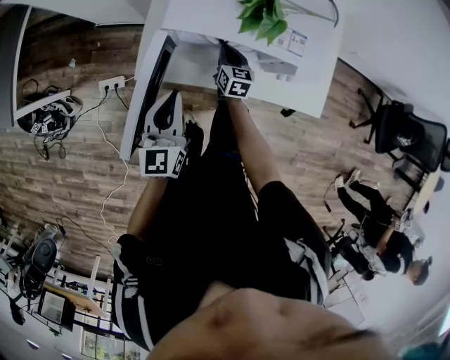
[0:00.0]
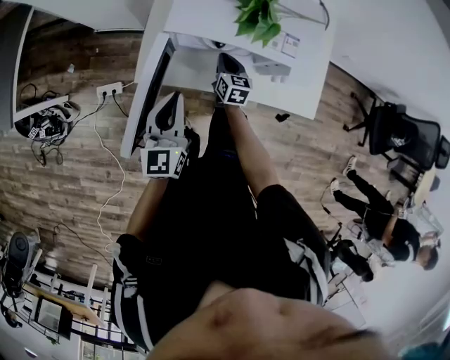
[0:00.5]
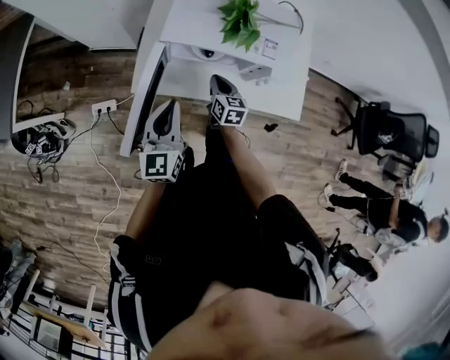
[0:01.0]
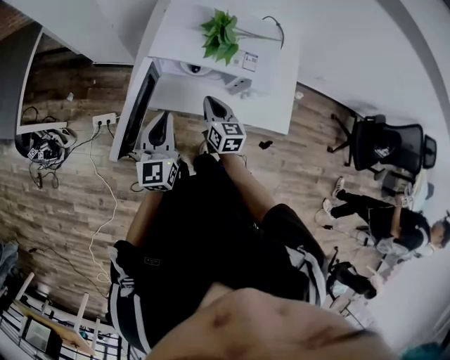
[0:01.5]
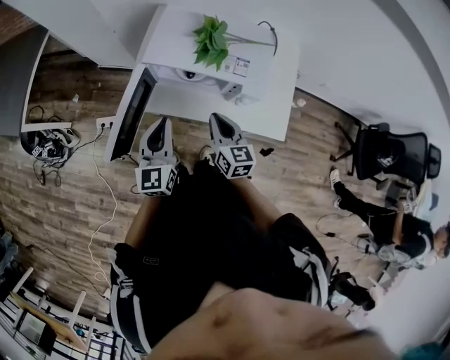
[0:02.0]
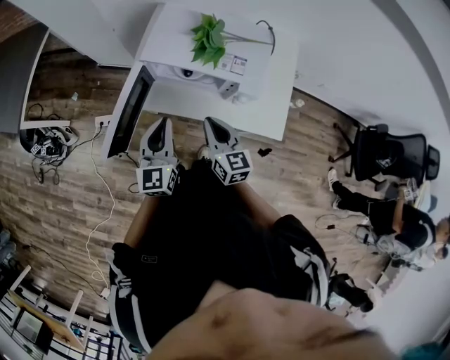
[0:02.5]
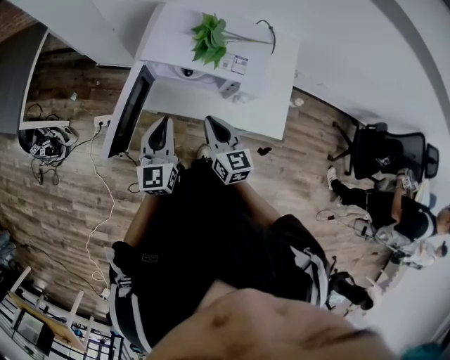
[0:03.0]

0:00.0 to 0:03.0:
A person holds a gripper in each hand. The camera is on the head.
0:00.0 to 0:01.5: The right gripper is displaced upward and backward by some 20 cm. The left gripper travels upward by about 5 cm.
0:01.5 to 0:03.0: The right gripper moves upward and backward, roughly 10 cm.

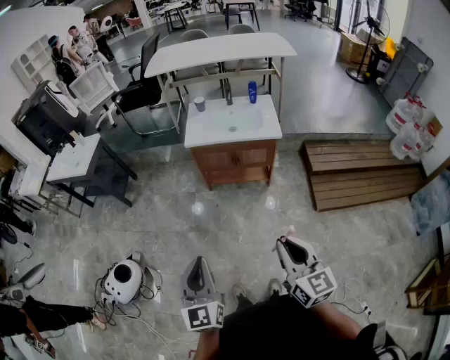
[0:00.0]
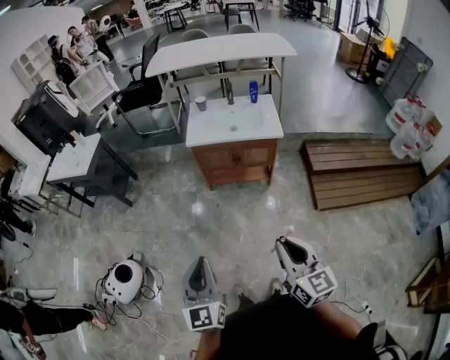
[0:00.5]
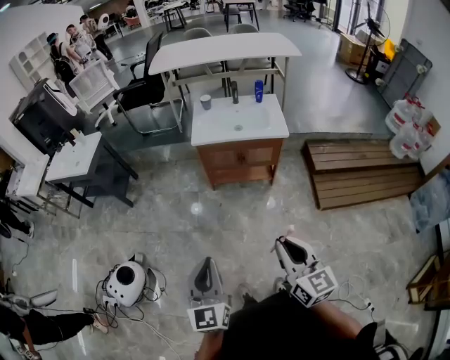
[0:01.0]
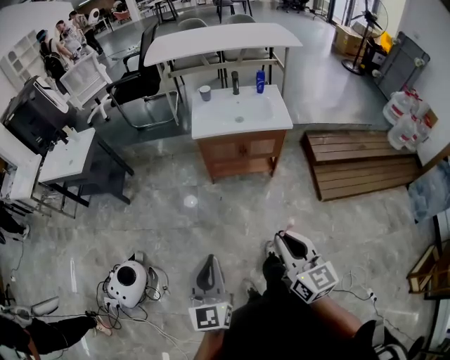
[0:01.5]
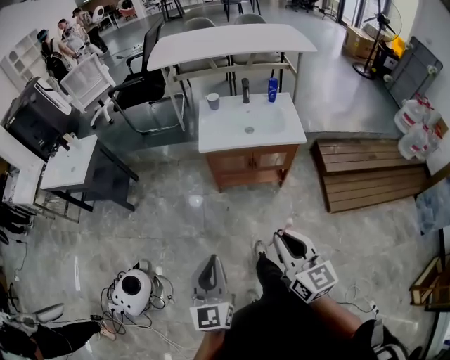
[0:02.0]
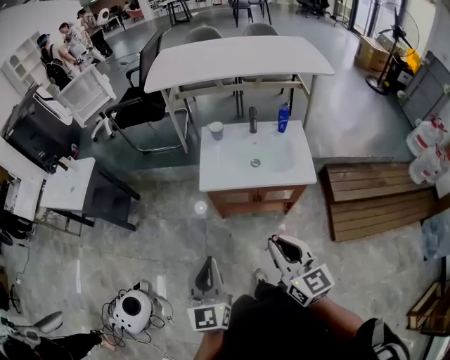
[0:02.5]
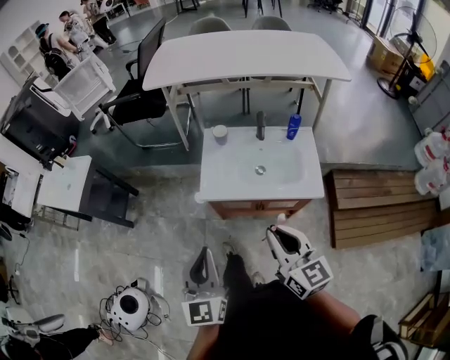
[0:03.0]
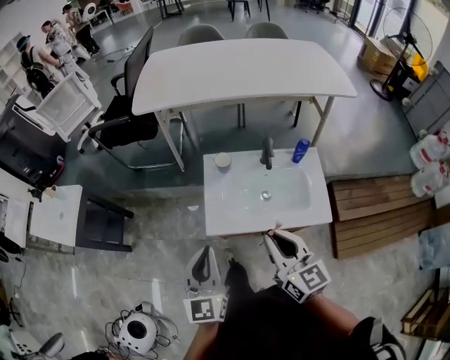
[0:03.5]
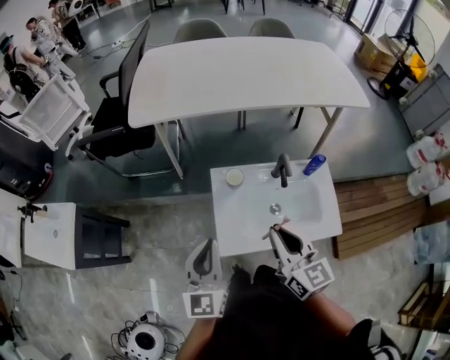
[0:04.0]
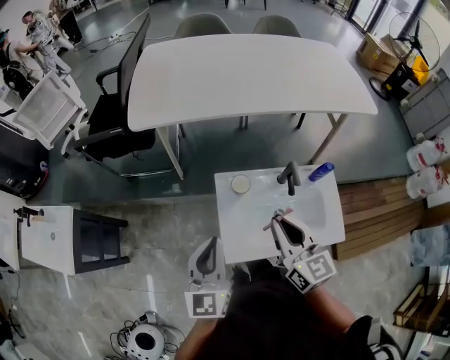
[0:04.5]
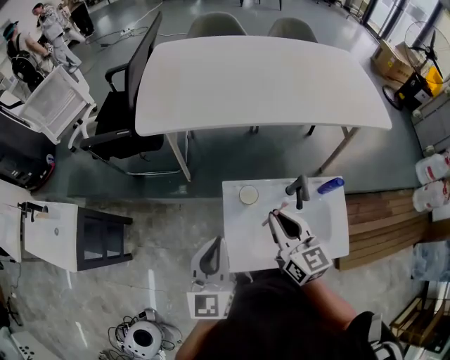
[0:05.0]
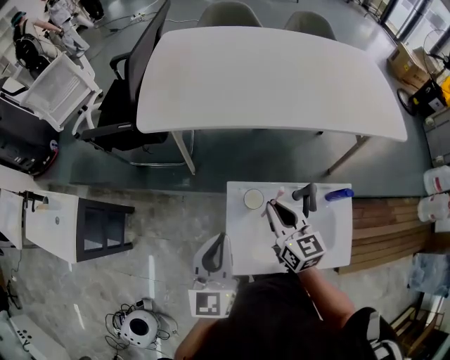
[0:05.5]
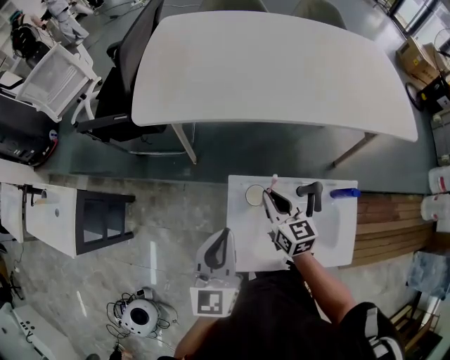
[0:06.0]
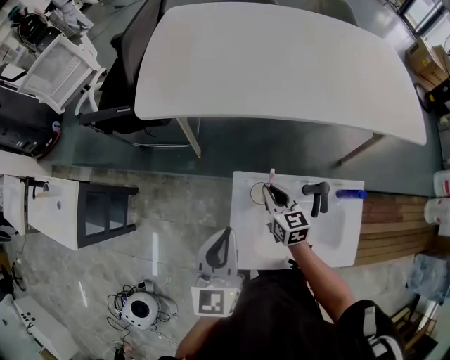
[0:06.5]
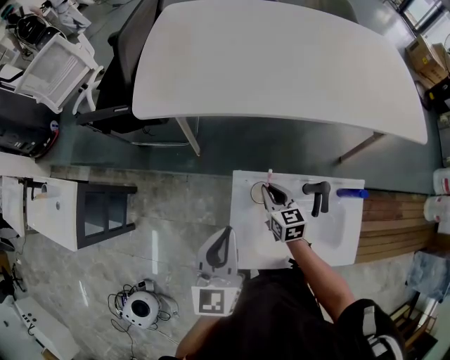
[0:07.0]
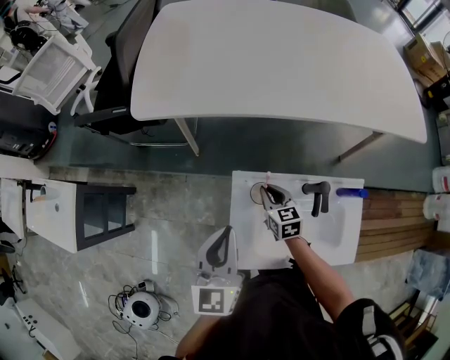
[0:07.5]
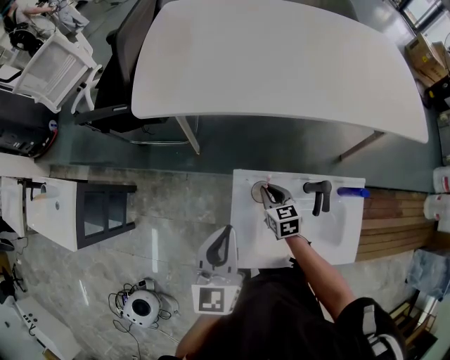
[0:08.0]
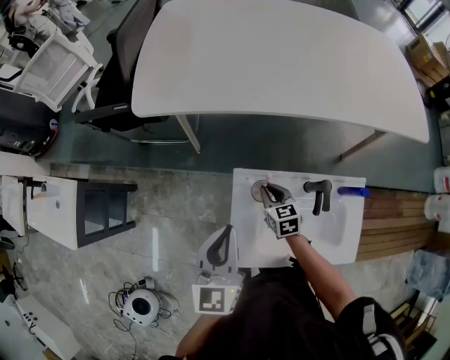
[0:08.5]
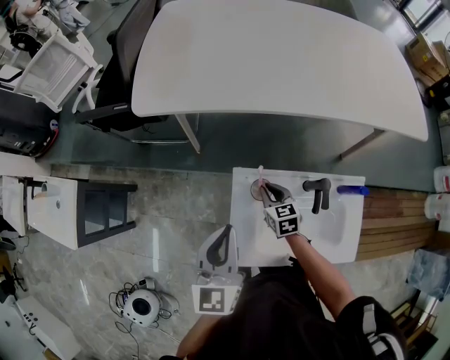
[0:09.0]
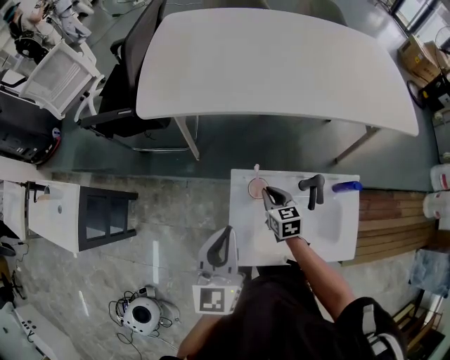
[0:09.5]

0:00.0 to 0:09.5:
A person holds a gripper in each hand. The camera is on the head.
0:00.0 to 0:02.0: Both grippers travel together forward and to the left, some 20 cm.
0:02.0 to 0:04.0: Both grippers are carried forward, approximately 60 cm.
0:04.0 to 0:05.5: The left gripper is displaced forward by about 15 cm. The right gripper moves forward, approximately 20 cm.
0:05.5 to 0:07.5: The left gripper ends up about 5 cm from where it was, while the right gripper is displaced downward by about 20 cm, and changes its angle by roughly 20 degrees.
0:07.5 to 0:09.5: The grippers move only a little.

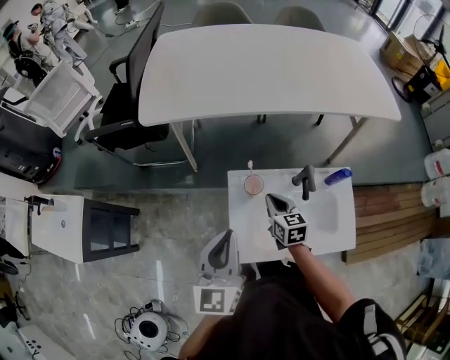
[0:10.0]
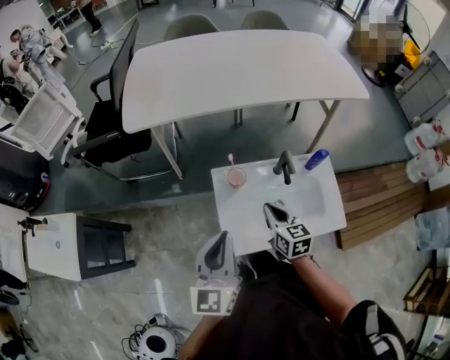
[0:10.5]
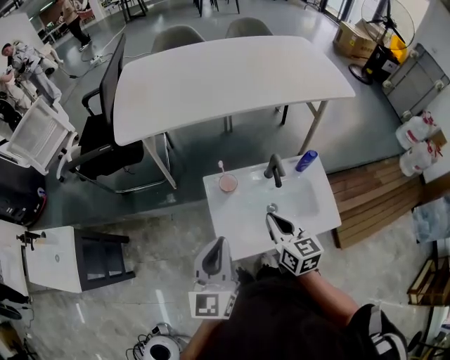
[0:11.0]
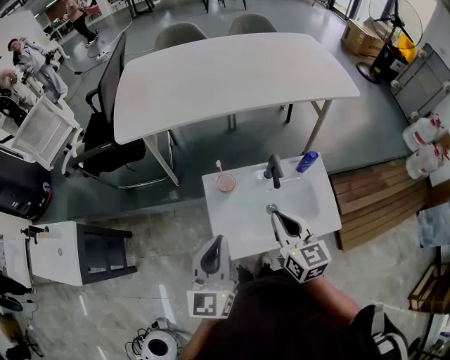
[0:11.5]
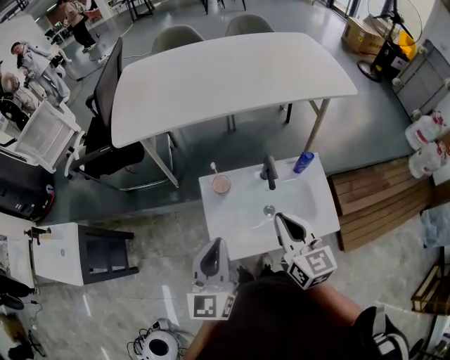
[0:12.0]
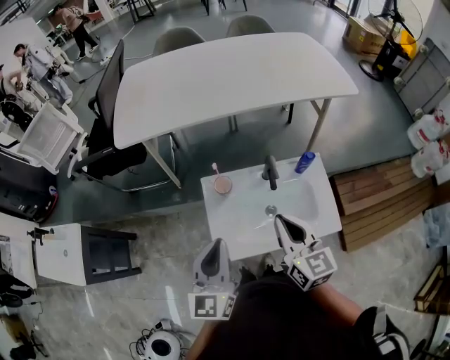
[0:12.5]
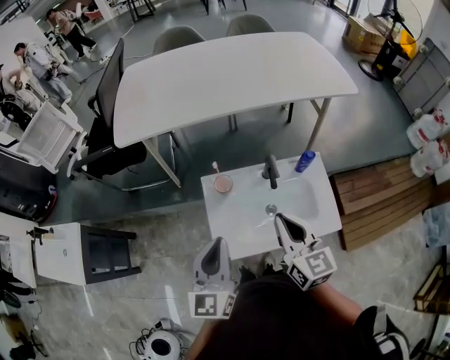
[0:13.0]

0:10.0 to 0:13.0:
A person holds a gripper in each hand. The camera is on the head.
0:10.0 to 0:11.5: The left gripper heads backward, covering about 5 cm. The right gripper is displaced upward, backward and to the right by roughly 25 cm.
0:11.5 to 0:13.0: The grippers move only a little.

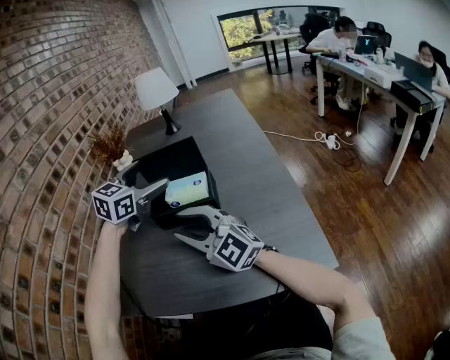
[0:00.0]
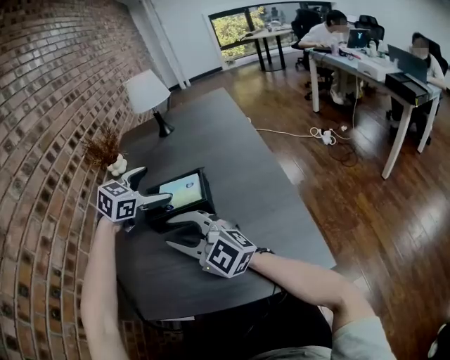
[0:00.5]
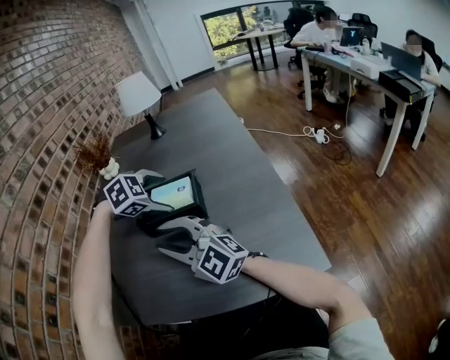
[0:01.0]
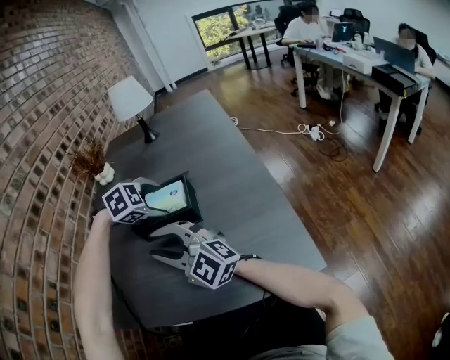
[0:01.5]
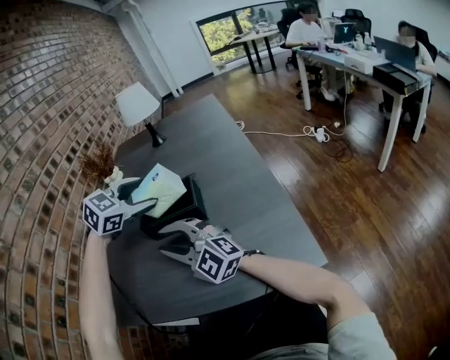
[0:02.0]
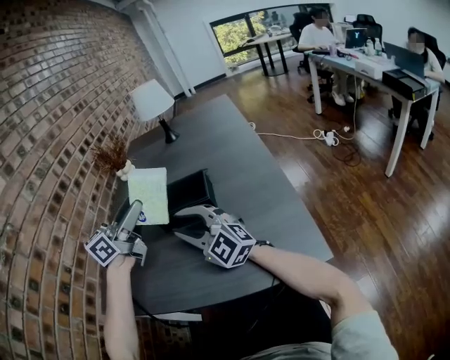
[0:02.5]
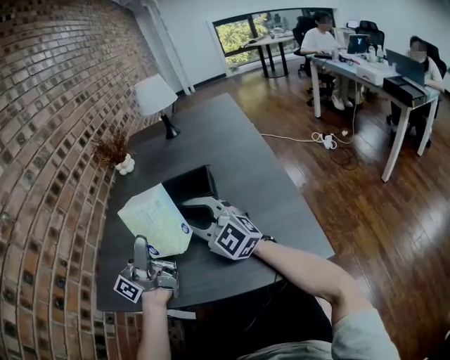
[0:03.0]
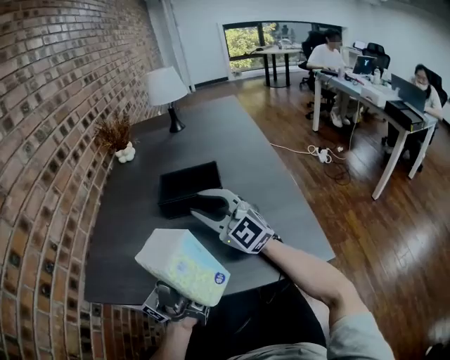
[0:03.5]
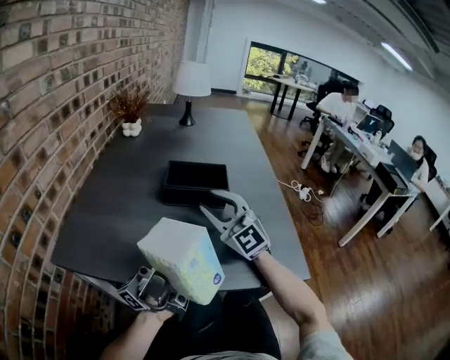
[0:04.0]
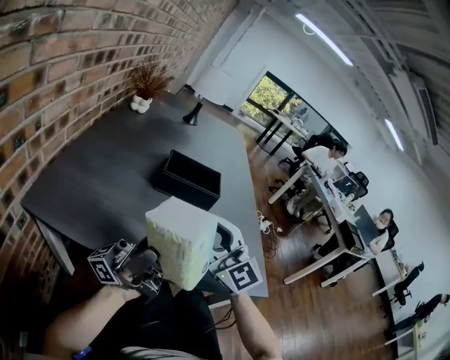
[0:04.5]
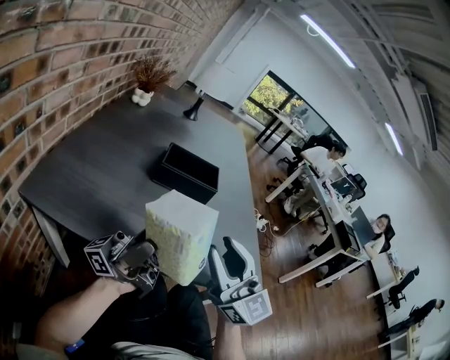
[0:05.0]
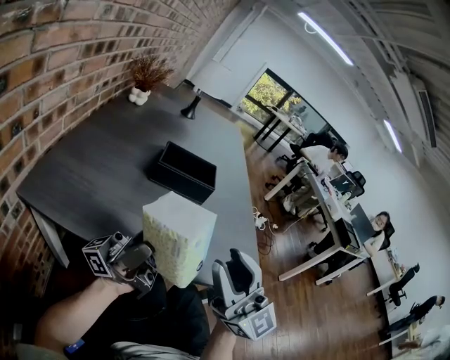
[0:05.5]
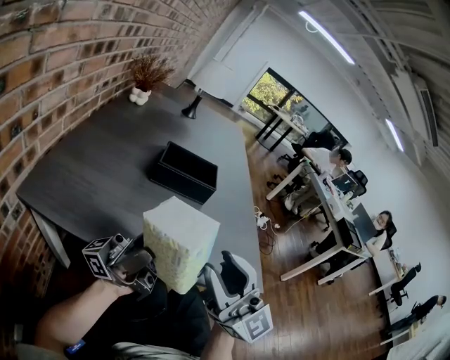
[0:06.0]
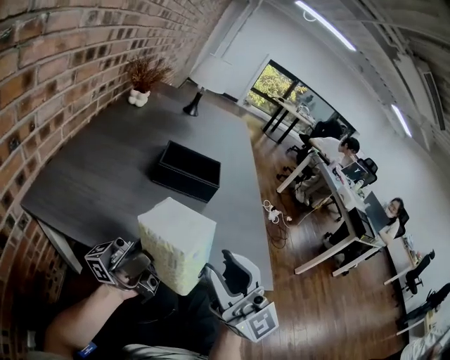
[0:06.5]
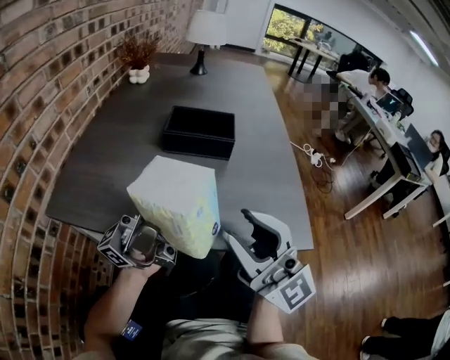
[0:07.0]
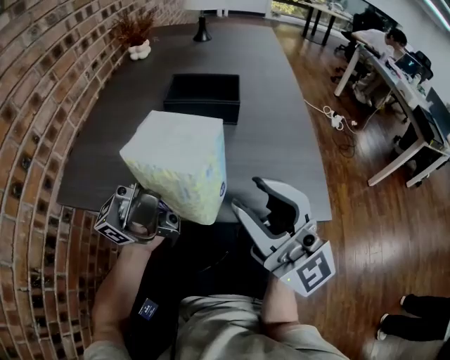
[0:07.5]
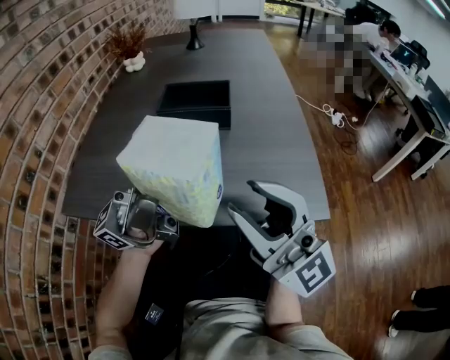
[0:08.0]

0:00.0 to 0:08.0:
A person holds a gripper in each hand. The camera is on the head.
0:00.0 to 0:02.0: The left gripper goes downward and returns, roughly 10 cm each way, and turns by roughly 20 degrees.
0:02.0 to 0:04.0: The right gripper moves some 5 cm; the left gripper is displaced backward by some 30 cm, and angles its fingers upward, by about 100 degrees.
0:04.0 to 0:06.0: The right gripper moves backward, about 20 cm, and rotates approximately 20 degrees.
0:06.0 to 0:08.0: The left gripper changes place by some 5 cm, and turns by about 30 degrees, while the right gripper goes roughly 5 cm to the right.

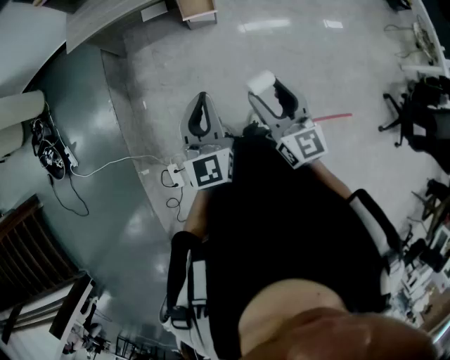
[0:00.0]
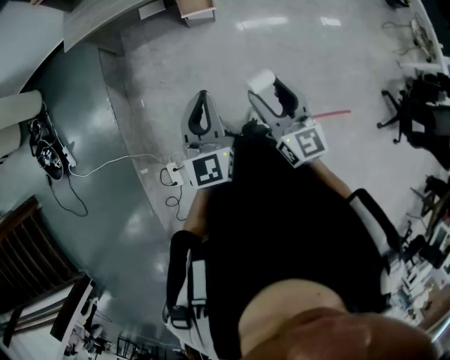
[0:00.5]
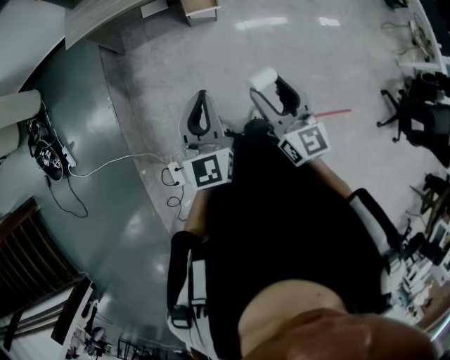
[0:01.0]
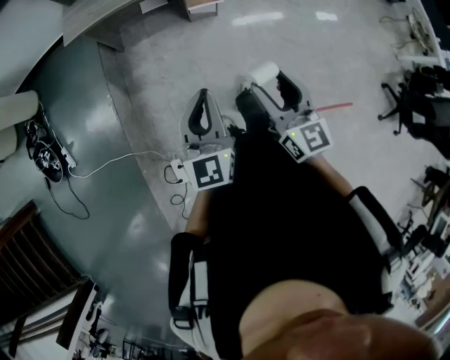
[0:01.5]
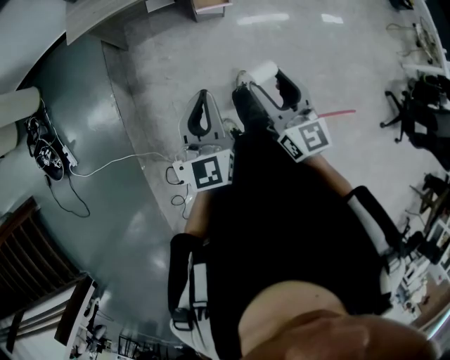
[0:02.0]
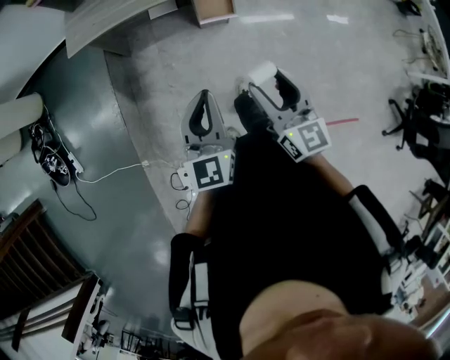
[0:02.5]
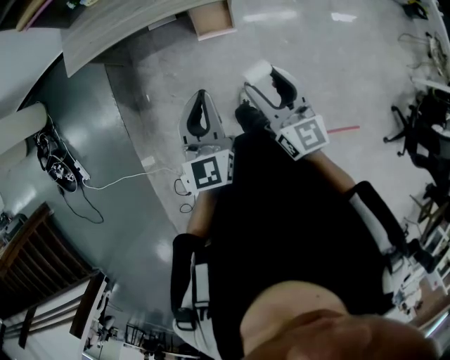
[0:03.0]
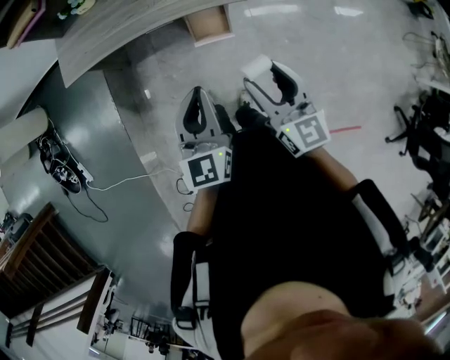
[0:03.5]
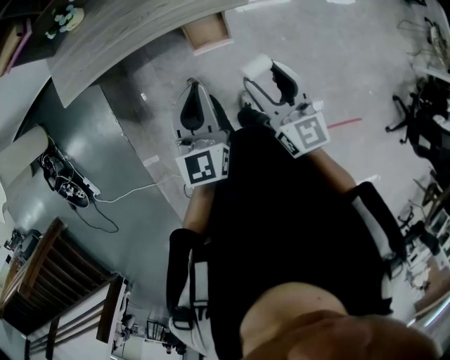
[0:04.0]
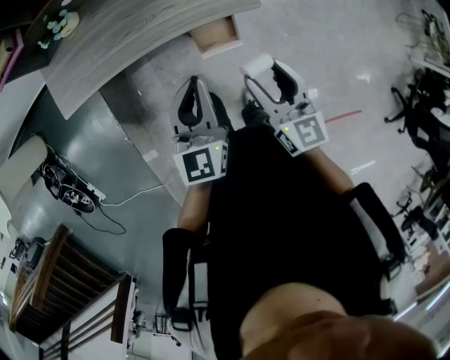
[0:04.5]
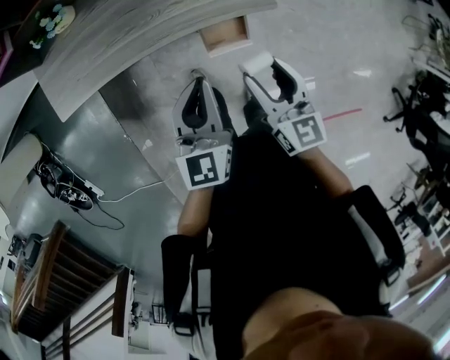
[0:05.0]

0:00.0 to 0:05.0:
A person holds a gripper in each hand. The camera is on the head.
0:00.0 to 0:02.5: The left gripper travels forward and to the left by about 15 cm. Meanwhile the right gripper goes roughly 15 cm forward.
0:02.5 to 0:05.0: Both grippers travel together forward, about 40 cm.
